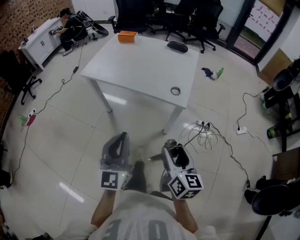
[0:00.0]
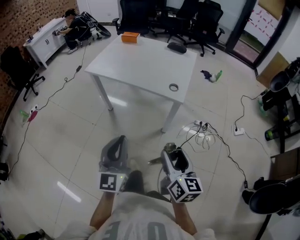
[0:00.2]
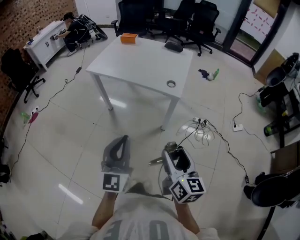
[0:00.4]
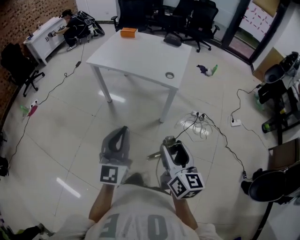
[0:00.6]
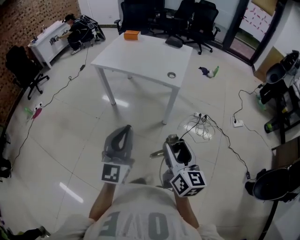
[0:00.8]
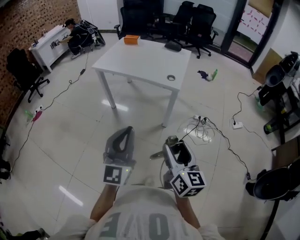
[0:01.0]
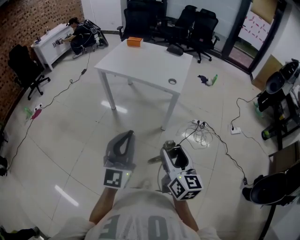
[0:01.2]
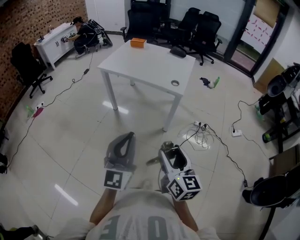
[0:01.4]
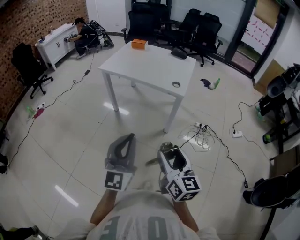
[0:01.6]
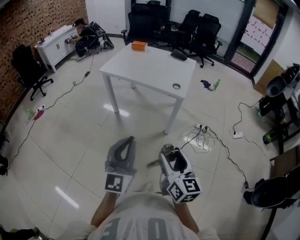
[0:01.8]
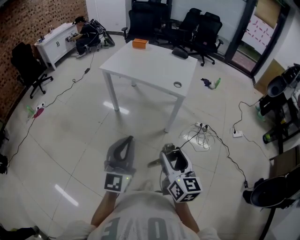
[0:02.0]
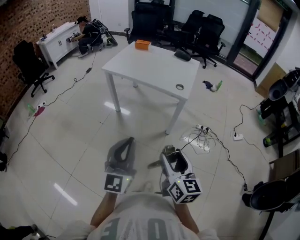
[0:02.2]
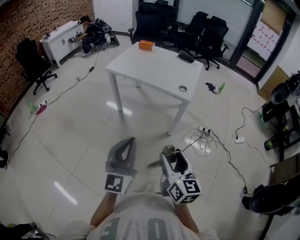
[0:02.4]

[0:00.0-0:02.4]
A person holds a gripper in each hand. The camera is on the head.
0:00.0 to 0:01.2: The two grippers go about 20 cm backward.
0:01.2 to 0:02.4: The grippers stay close to where they were, moving slightly.

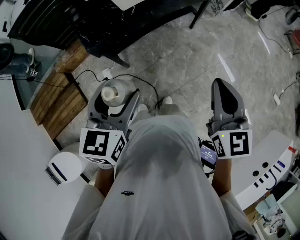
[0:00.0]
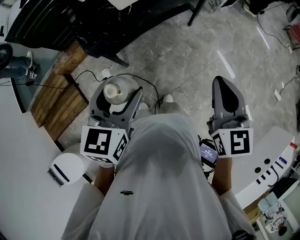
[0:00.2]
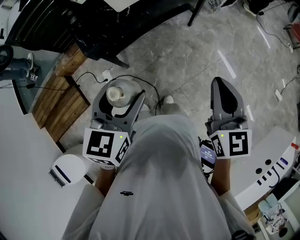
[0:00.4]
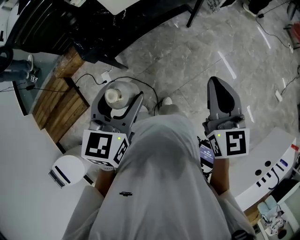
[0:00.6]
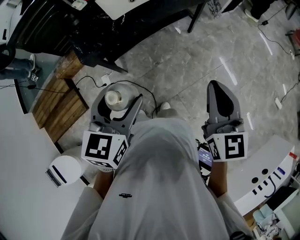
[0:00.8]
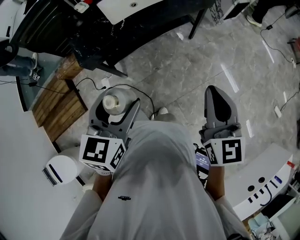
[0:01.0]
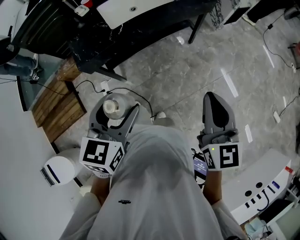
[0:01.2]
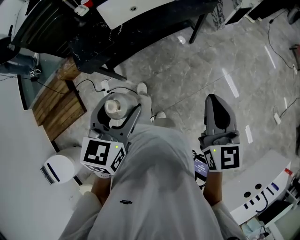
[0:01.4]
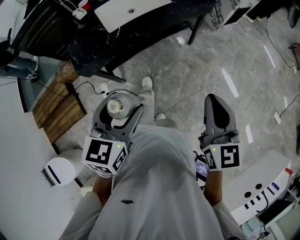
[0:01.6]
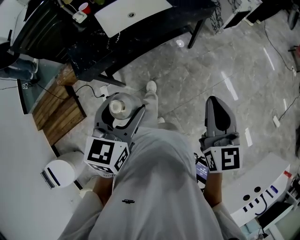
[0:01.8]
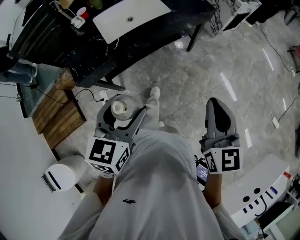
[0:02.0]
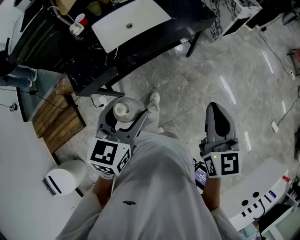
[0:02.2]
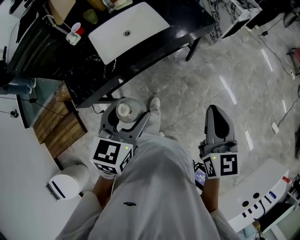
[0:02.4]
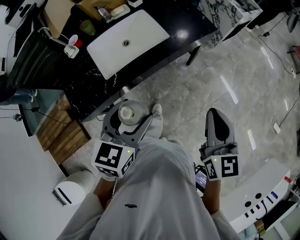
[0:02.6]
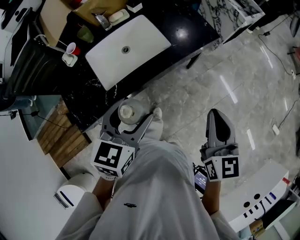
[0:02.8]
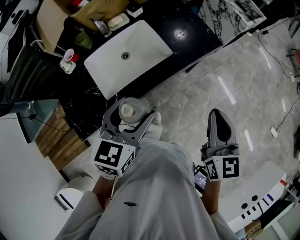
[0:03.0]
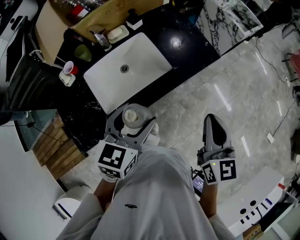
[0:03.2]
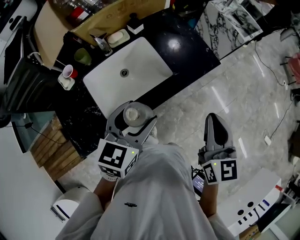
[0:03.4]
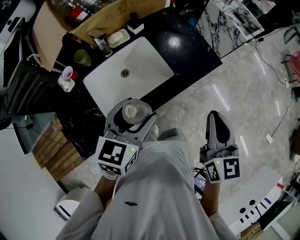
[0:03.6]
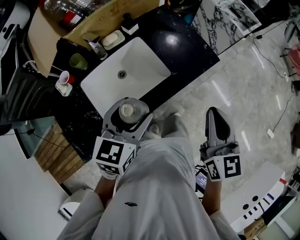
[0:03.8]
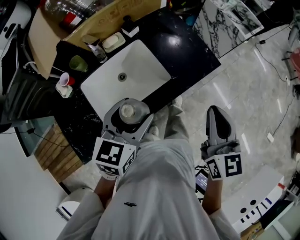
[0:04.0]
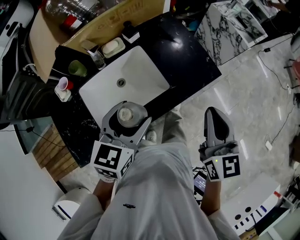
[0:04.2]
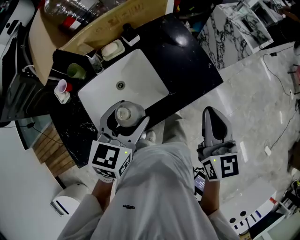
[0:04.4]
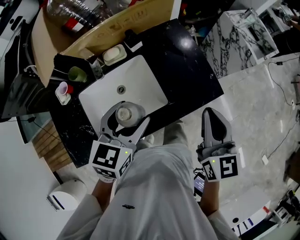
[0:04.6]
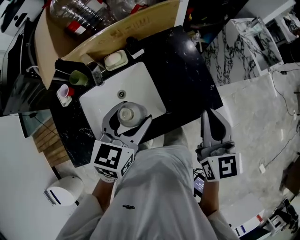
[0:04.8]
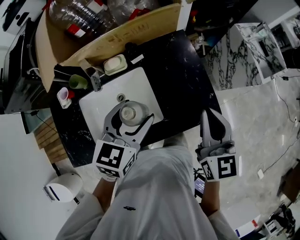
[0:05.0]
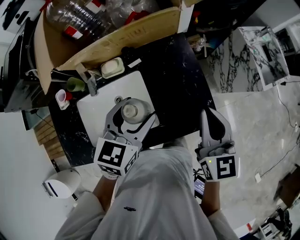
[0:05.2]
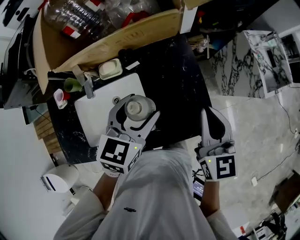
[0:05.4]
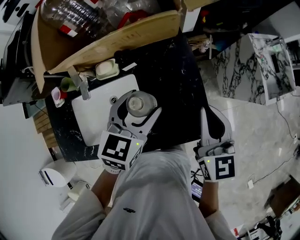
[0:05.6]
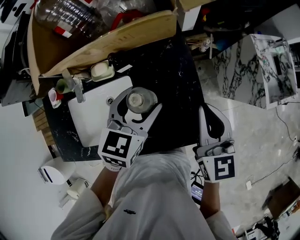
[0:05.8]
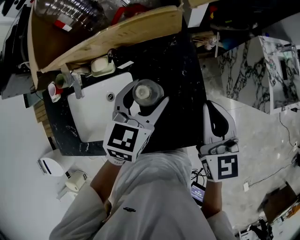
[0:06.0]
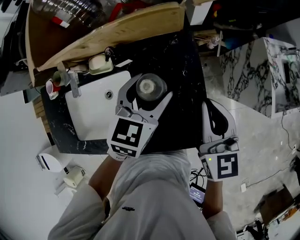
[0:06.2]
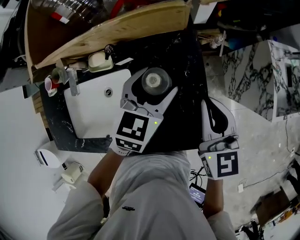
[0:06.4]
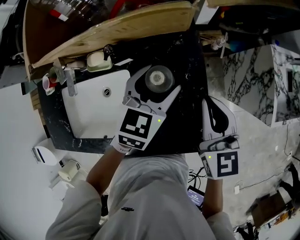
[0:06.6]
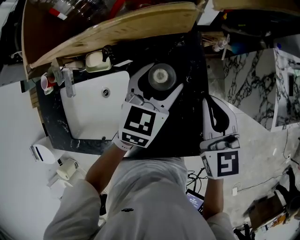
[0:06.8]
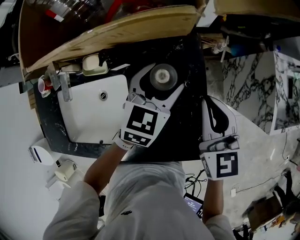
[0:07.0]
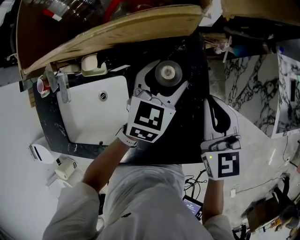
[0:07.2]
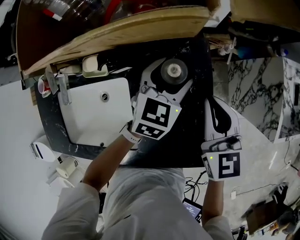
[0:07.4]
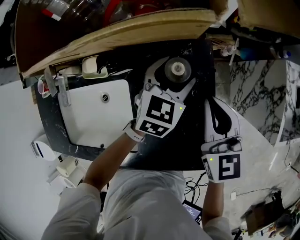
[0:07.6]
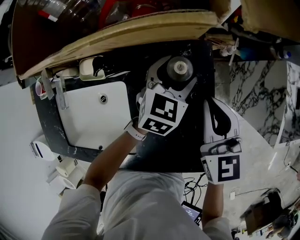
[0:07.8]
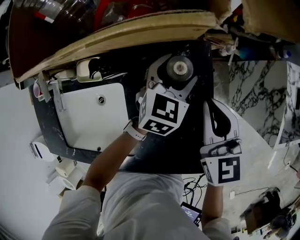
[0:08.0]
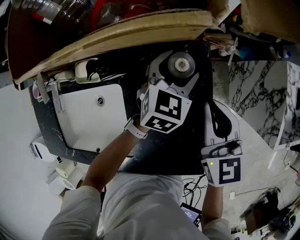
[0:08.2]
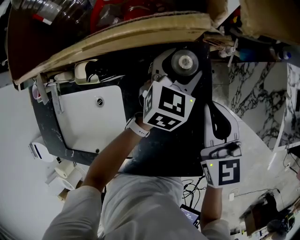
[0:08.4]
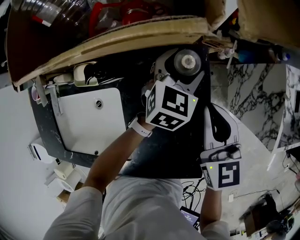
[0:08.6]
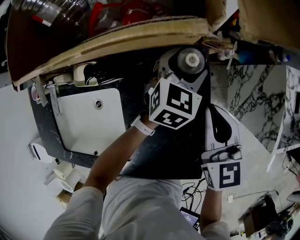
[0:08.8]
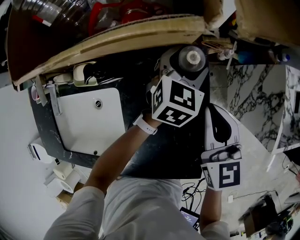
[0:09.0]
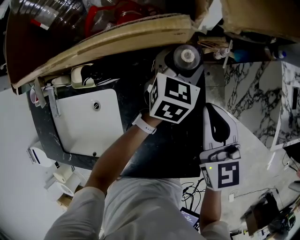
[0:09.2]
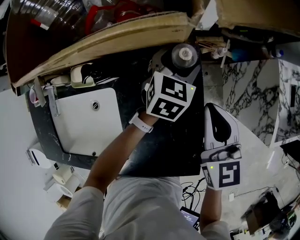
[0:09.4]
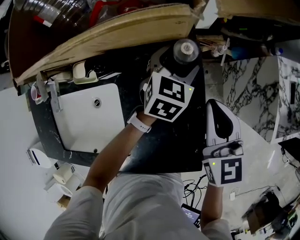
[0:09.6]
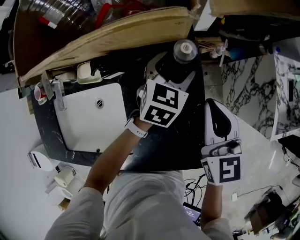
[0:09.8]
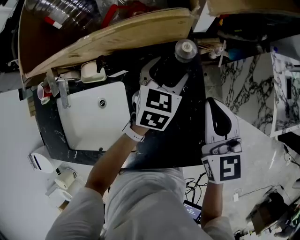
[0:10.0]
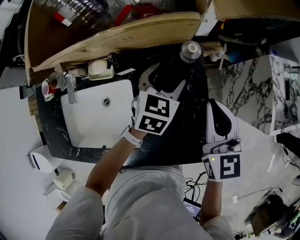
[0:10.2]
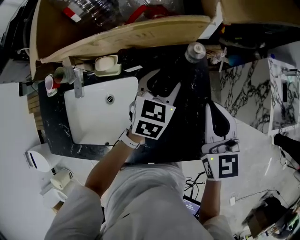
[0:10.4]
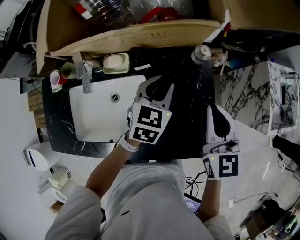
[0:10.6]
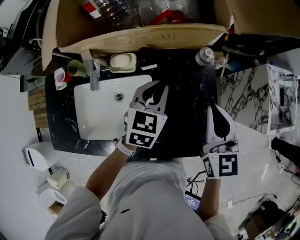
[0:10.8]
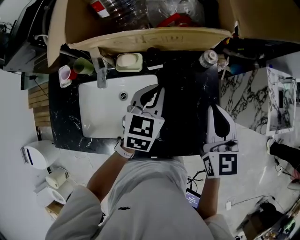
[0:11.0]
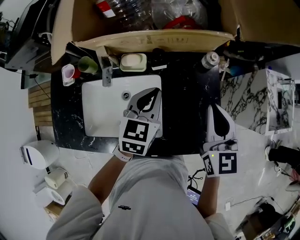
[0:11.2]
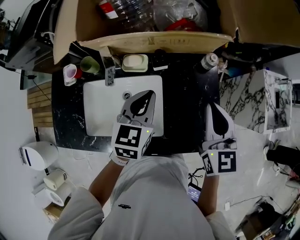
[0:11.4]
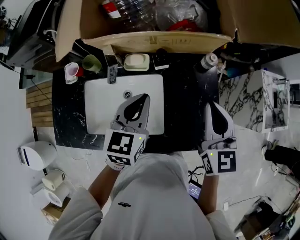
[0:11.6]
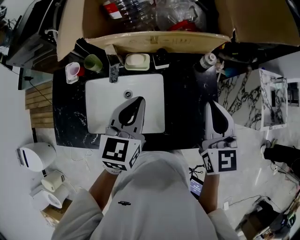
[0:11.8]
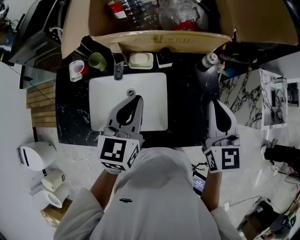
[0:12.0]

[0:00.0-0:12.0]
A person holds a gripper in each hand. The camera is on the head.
0:00.0 to 0:01.6: The grippers both shift to the right and forward by about 15 cm.
0:01.6 to 0:03.0: Both grippers move forward, approximately 30 cm.
0:03.0 to 0:04.4: Both grippers travel together forward, approximately 20 cm.
0:04.4 to 0:06.0: The left gripper shifts approximately 30 cm forward and to the right. The right gripper moves forward, some 30 cm, and changes its angle by about 20 degrees.
0:06.0 to 0:07.6: The two grippers go about 15 cm downward and forward.
0:07.6 to 0:09.0: The left gripper moves forward and to the right, about 10 cm.
0:09.0 to 0:10.4: The right gripper moves upward and backward, approximately 10 cm; the left gripper moves backward, to the left and upward, approximately 20 cm.
0:10.4 to 0:12.0: The left gripper is displaced to the left, upward and backward by some 30 cm, turns by roughly 20 degrees, and closes its fingers, while the right gripper moves upward, to the left and backward, roughly 15 cm.

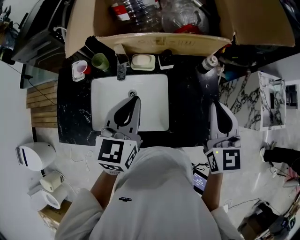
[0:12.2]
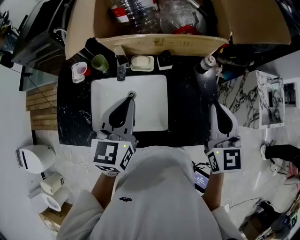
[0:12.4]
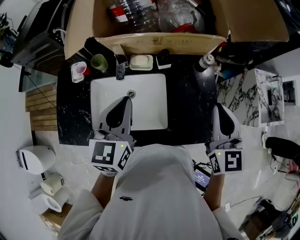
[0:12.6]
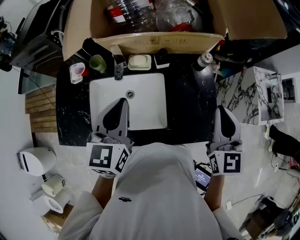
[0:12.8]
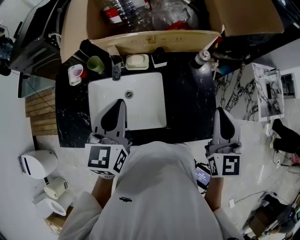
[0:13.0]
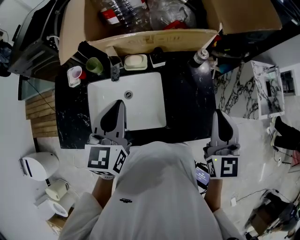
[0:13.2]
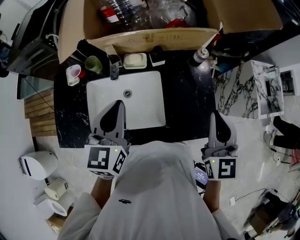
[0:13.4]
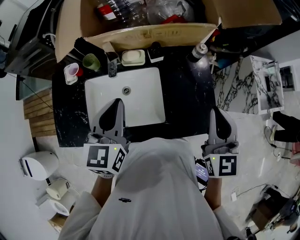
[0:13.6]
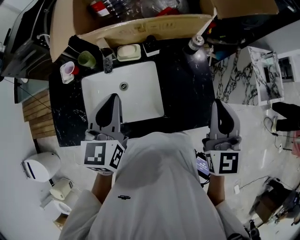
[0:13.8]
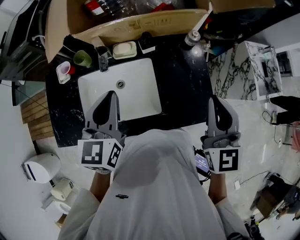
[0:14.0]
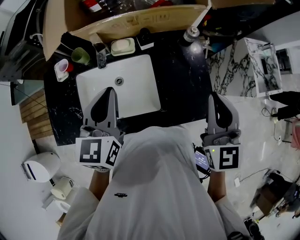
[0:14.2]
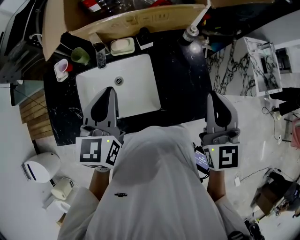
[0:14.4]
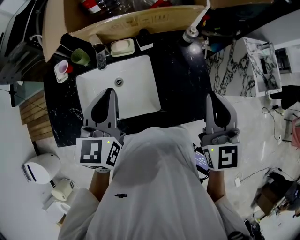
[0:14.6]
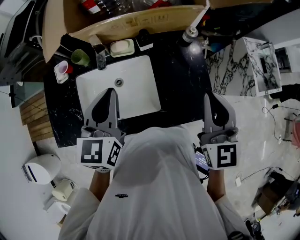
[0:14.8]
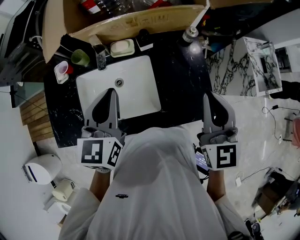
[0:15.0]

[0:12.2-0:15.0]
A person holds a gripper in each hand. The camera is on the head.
0:12.2 to 0:13.6: The right gripper shifts approximately 5 cm backward.
0:13.6 to 0:15.0: The grippers make only small movements.

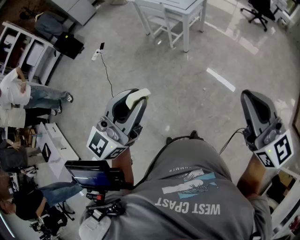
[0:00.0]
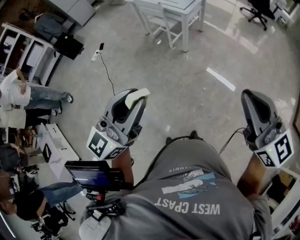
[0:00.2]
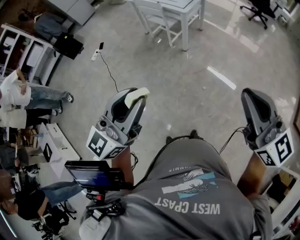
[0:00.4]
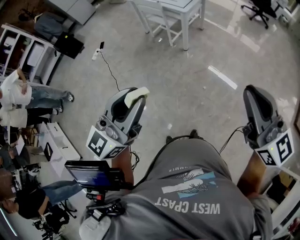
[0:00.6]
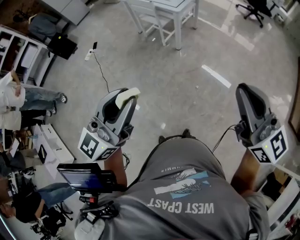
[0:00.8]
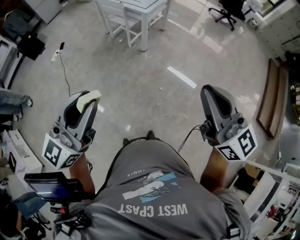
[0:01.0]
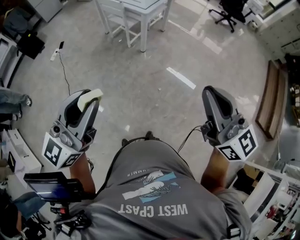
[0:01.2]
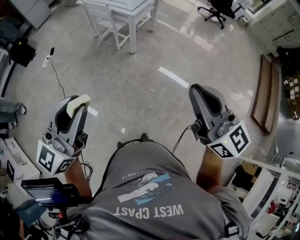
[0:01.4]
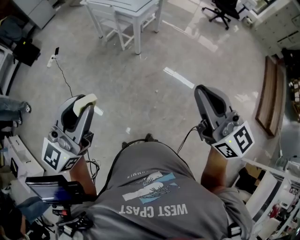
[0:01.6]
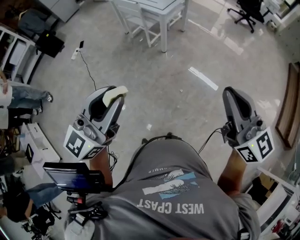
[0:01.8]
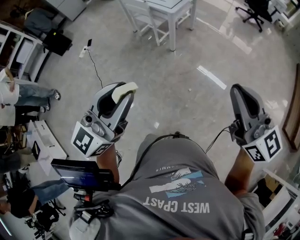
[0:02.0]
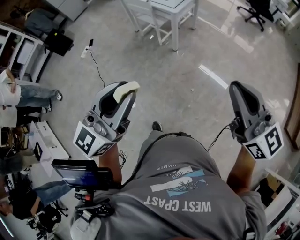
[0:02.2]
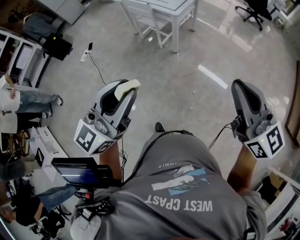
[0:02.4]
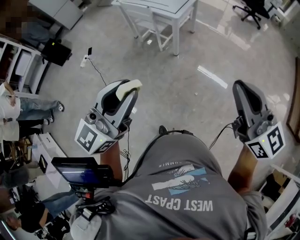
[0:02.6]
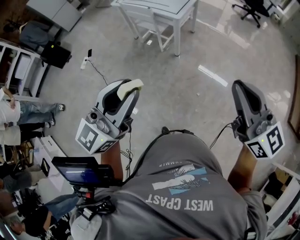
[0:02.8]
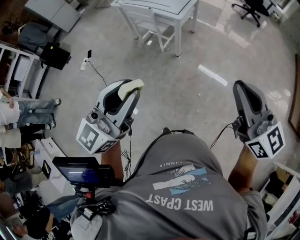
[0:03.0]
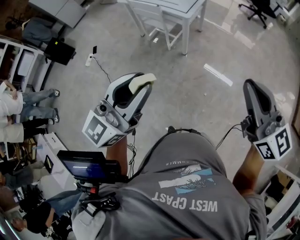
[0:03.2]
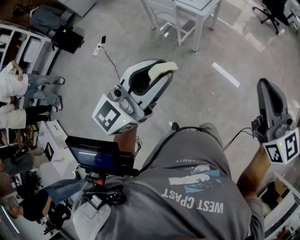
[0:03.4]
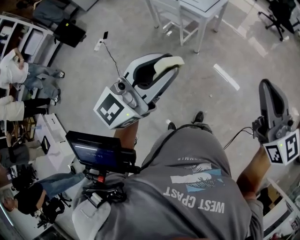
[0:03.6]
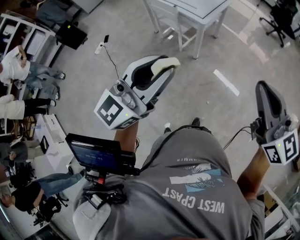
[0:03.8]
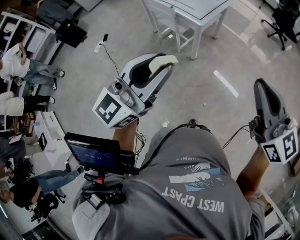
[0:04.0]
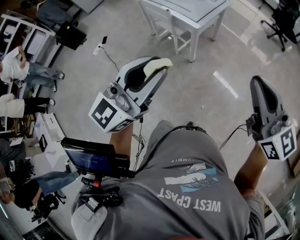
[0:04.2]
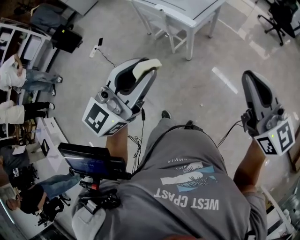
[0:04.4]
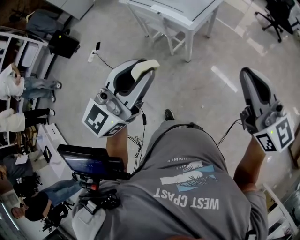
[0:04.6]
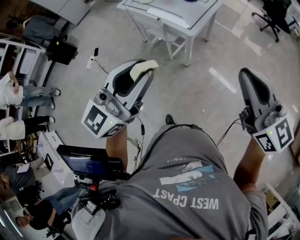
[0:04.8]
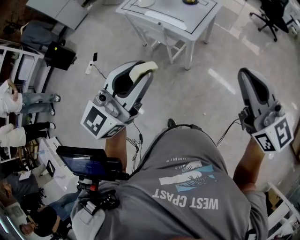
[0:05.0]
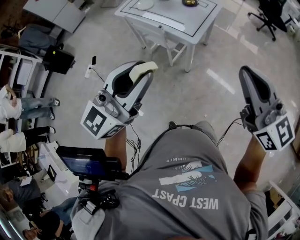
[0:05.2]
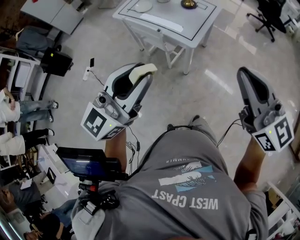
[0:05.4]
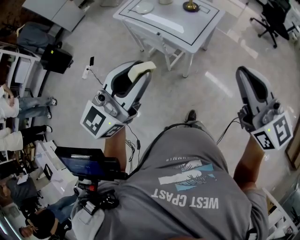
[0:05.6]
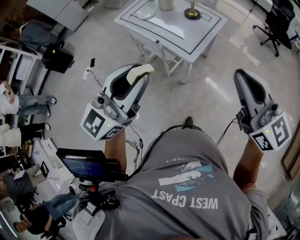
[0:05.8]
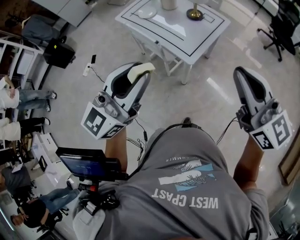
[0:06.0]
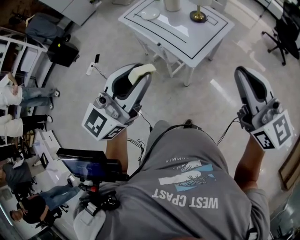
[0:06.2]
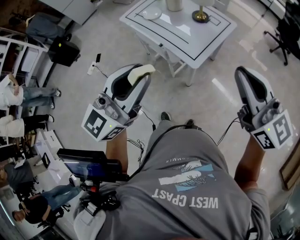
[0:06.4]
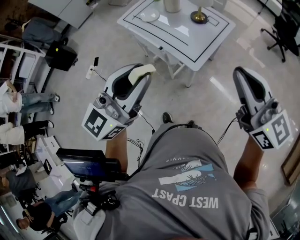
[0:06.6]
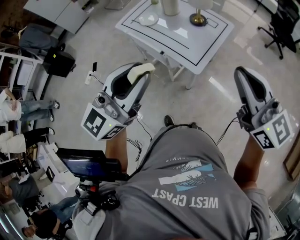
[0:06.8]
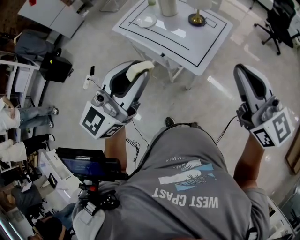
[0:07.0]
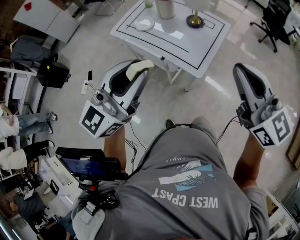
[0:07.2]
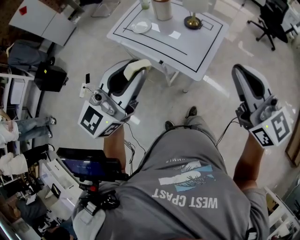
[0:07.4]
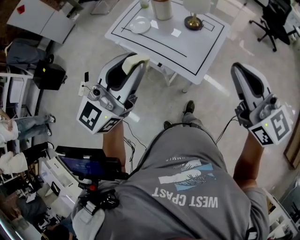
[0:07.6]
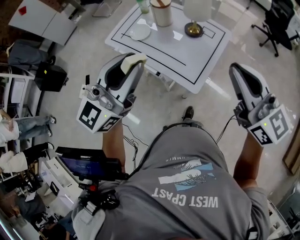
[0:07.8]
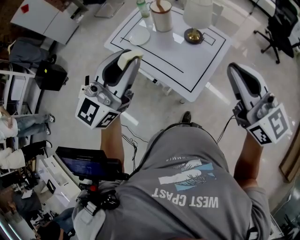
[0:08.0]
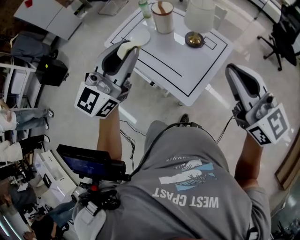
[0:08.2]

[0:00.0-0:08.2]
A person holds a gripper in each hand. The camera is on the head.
0:00.0 to 0:01.6: The grippers both shift to the right and forward by roughly 10 cm.
0:01.6 to 0:03.2: The right gripper travels to the left and forward by approximately 15 cm; the left gripper is displaced forward and to the left by some 20 cm.
0:03.2 to 0:05.0: Both grippers move forward, approximately 30 cm.
0:05.0 to 0:06.6: Both grippers travel together forward, approximately 20 cm.
0:06.6 to 0:08.2: Both grippers travel together forward, about 25 cm.
